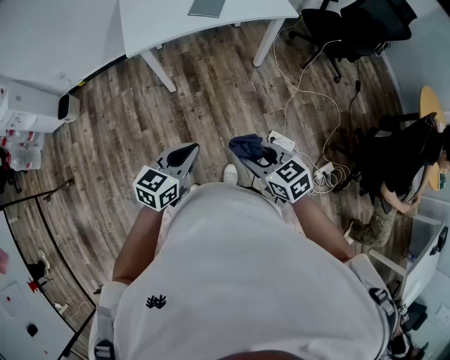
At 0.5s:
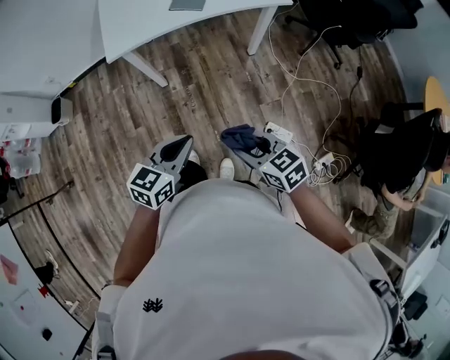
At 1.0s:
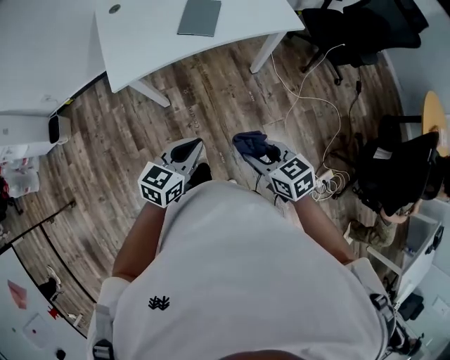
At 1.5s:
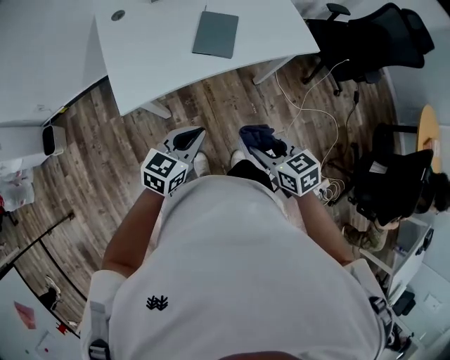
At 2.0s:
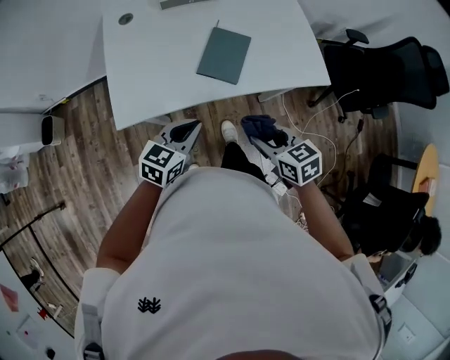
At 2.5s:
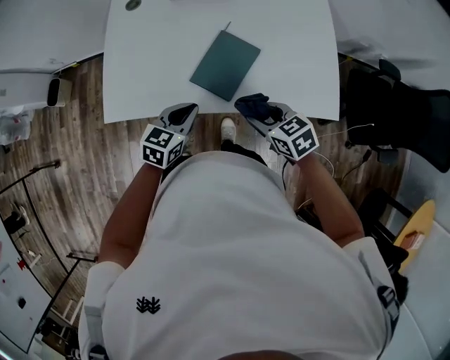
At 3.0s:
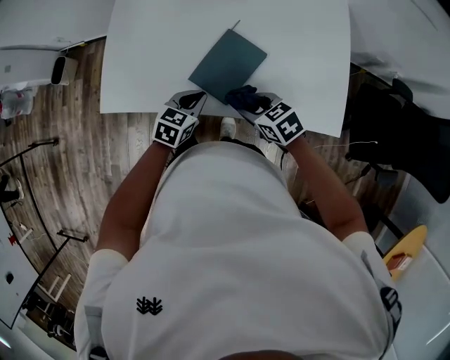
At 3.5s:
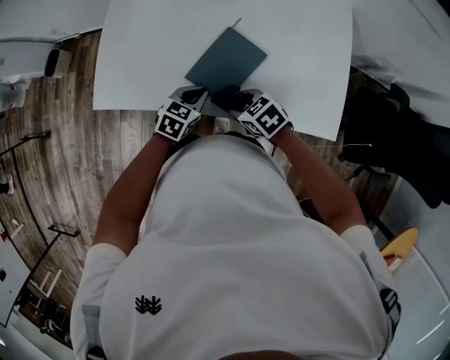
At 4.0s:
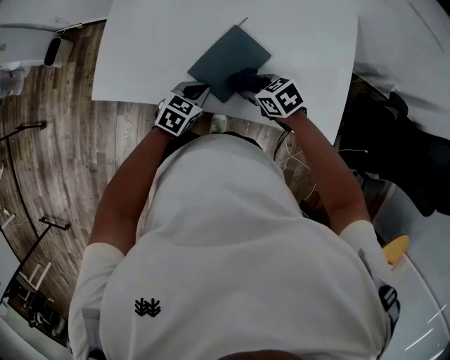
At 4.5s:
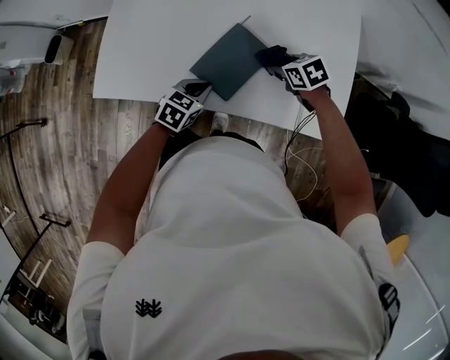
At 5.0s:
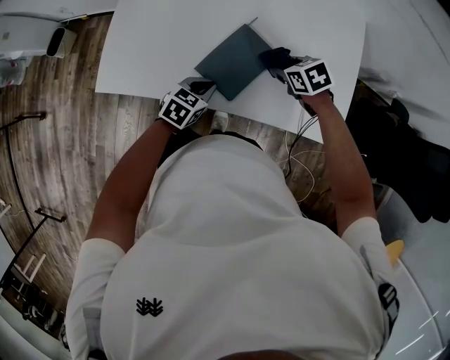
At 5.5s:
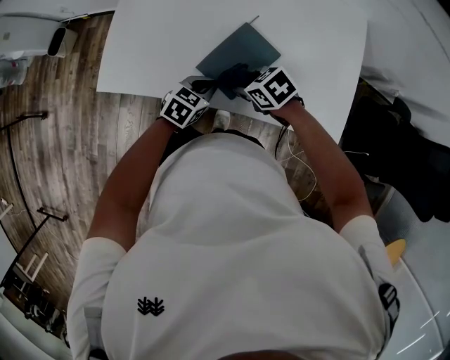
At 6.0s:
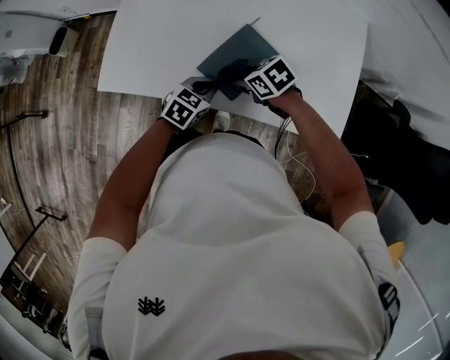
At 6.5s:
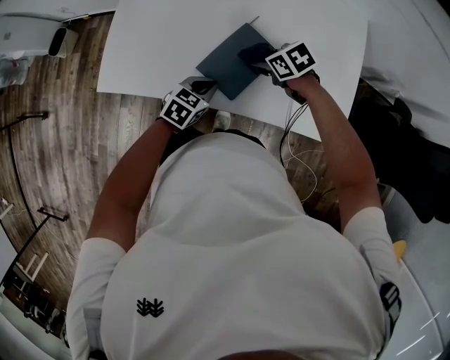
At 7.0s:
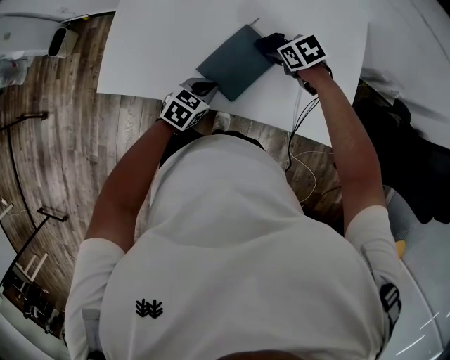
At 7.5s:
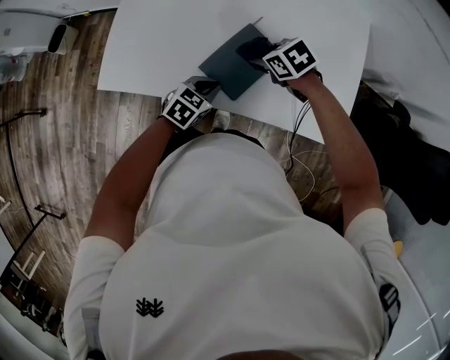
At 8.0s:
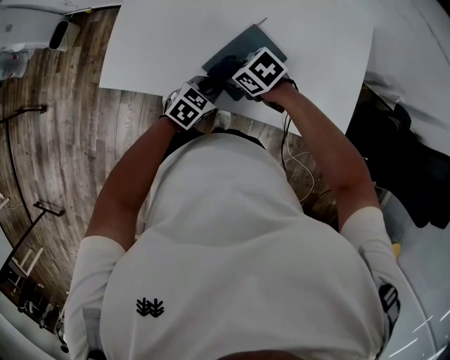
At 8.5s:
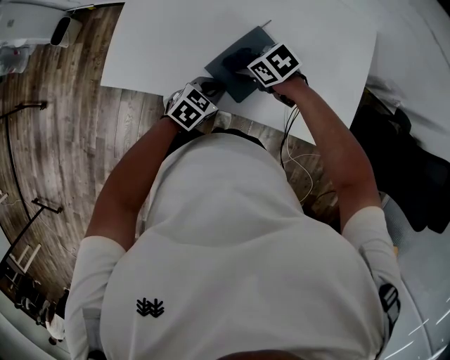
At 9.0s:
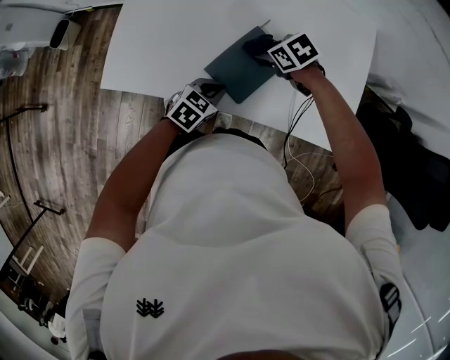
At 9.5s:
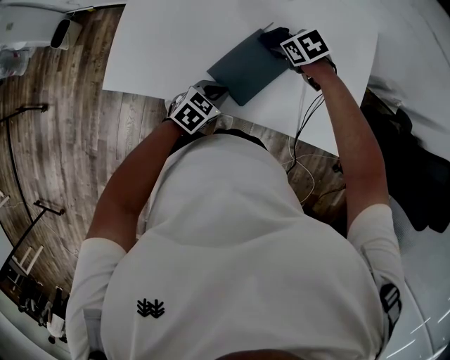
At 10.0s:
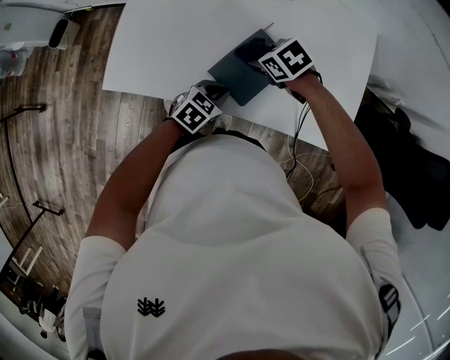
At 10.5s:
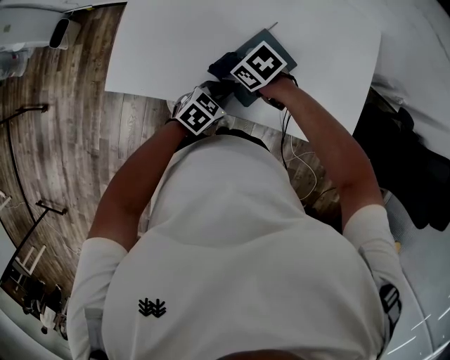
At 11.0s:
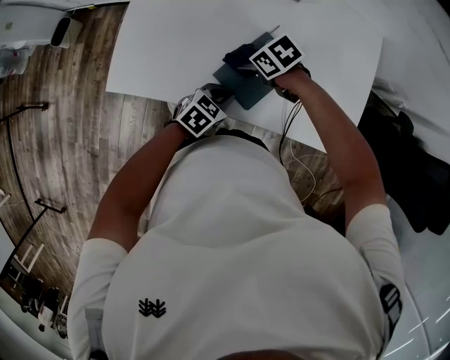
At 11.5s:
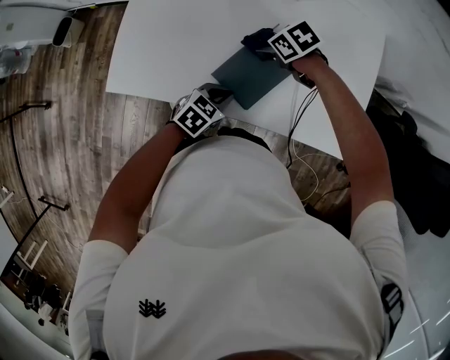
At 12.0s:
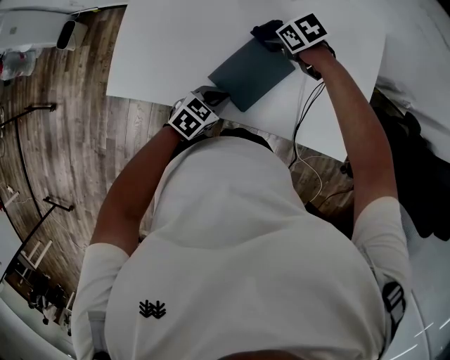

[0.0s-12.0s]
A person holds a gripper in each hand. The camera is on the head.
0.0s to 2.0s: Both grippers are carried forward, about 50 cm.
2.0s to 4.0s: The right gripper changes place by approximately 30 cm, and rotates some 40 degrees. Meanwhile the left gripper moves roughly 25 cm, and rotates approximately 30 degrees.
10.0s to 12.0s: The right gripper shifts by about 10 cm.

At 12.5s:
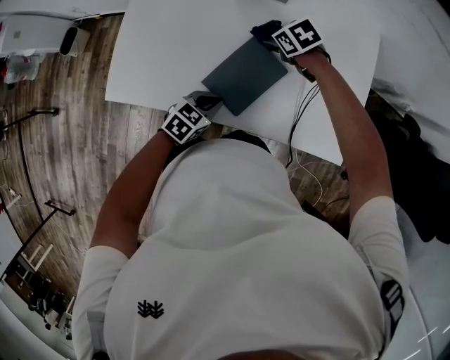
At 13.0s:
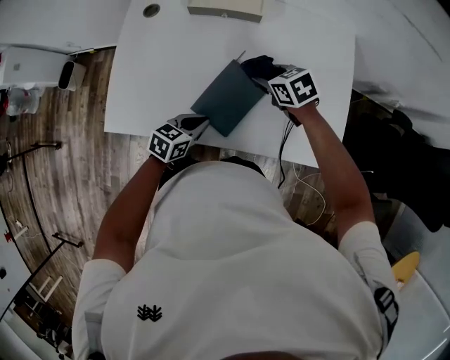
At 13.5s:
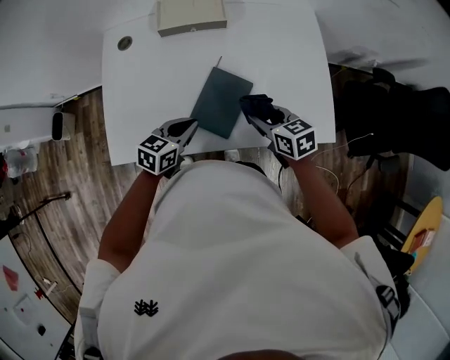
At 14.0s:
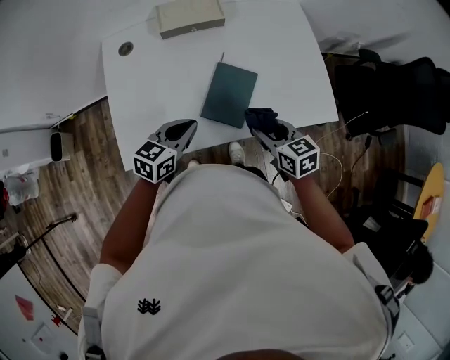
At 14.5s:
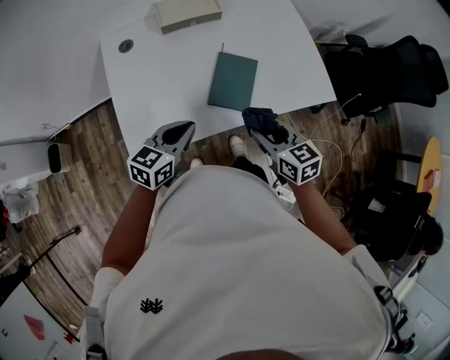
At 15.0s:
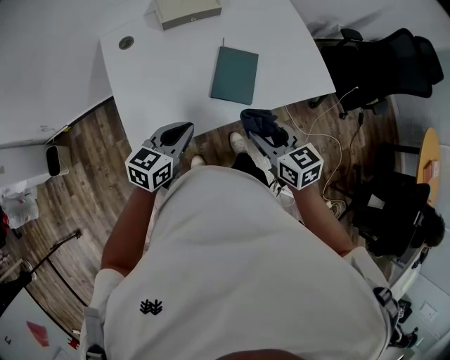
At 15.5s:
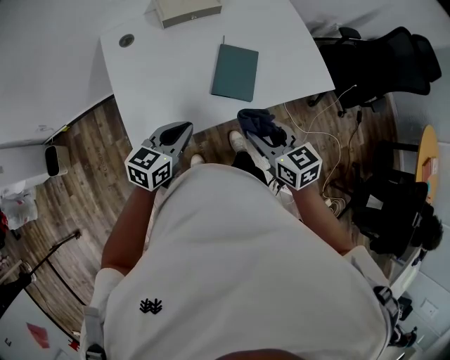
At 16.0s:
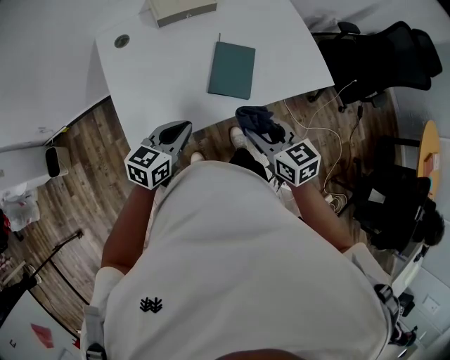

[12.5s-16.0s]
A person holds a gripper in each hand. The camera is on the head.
12.5s to 14.5s: The right gripper ends up about 35 cm from where it was, and points its fingers about 30 degrees further upward; the left gripper shifts some 20 cm upward, and changes its angle by about 30 degrees.
14.5s to 16.0s: The right gripper moves about 5 cm.

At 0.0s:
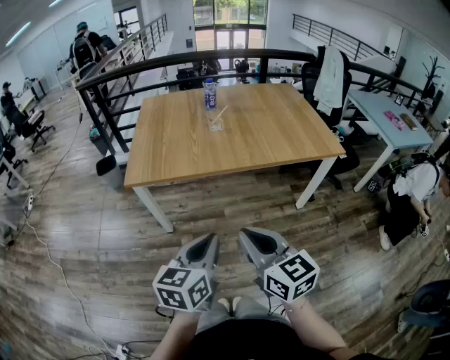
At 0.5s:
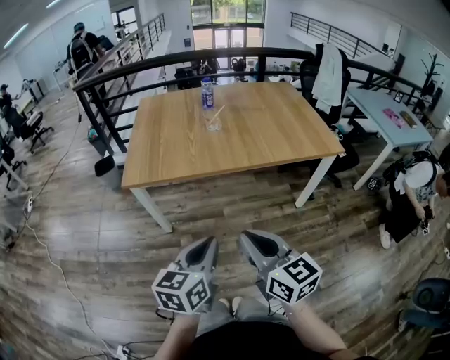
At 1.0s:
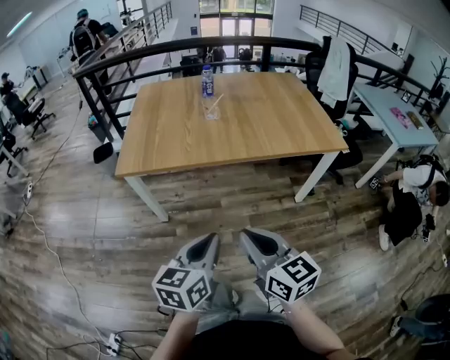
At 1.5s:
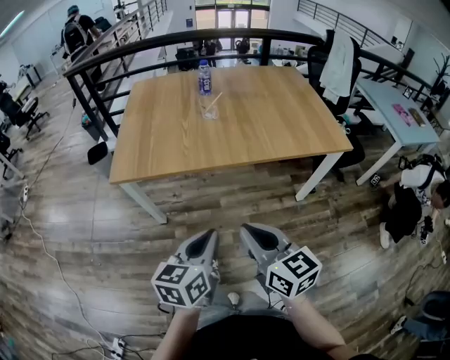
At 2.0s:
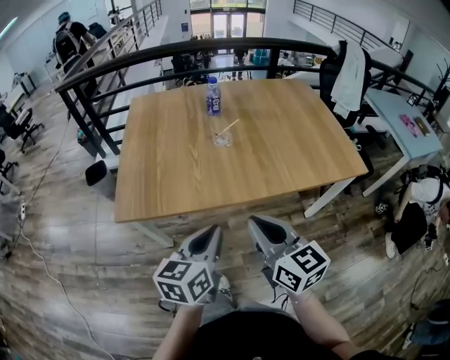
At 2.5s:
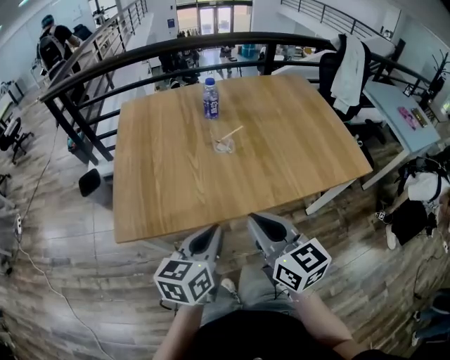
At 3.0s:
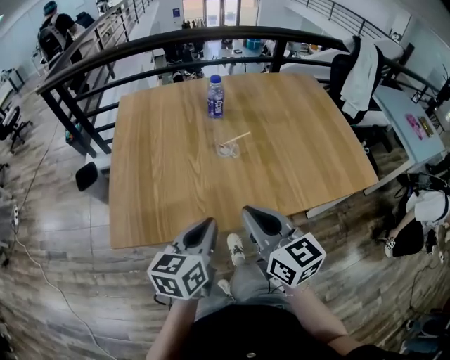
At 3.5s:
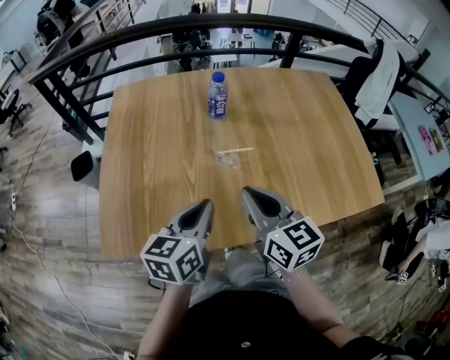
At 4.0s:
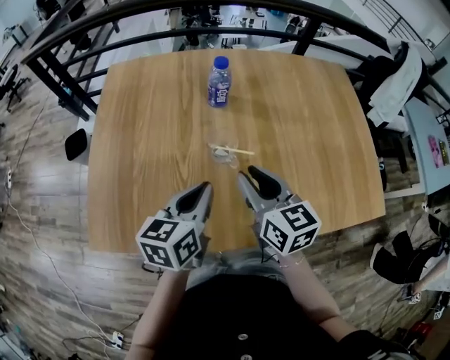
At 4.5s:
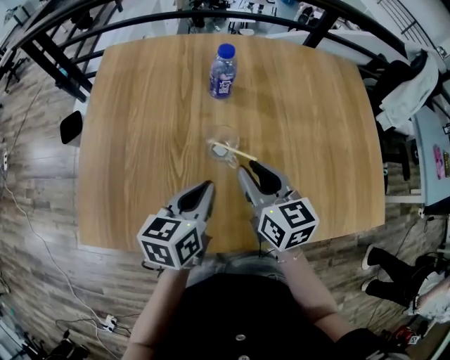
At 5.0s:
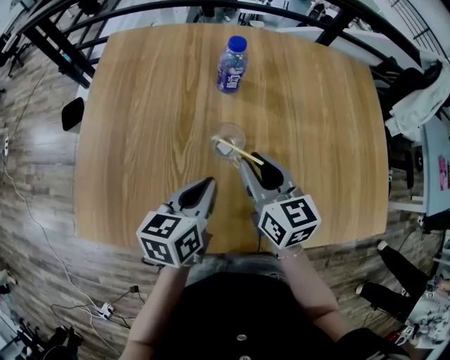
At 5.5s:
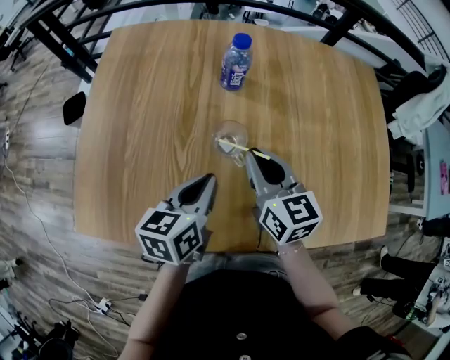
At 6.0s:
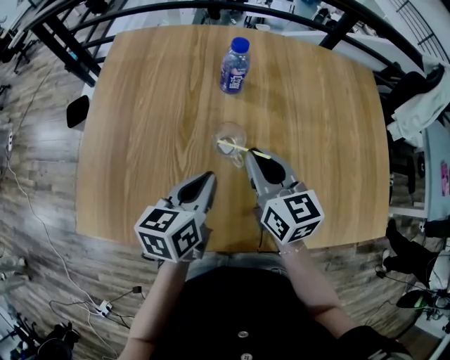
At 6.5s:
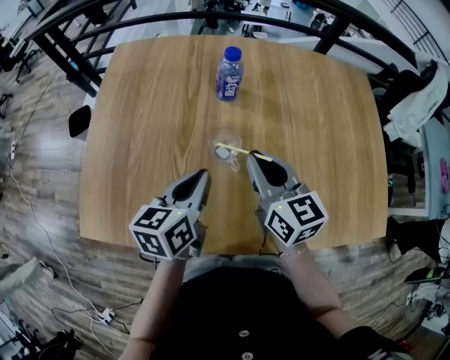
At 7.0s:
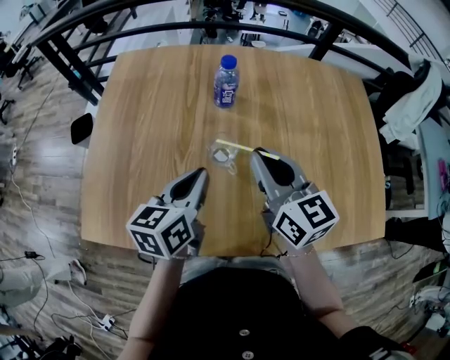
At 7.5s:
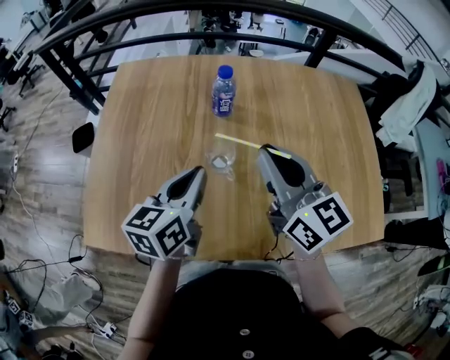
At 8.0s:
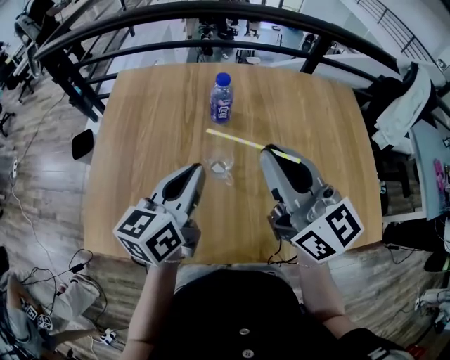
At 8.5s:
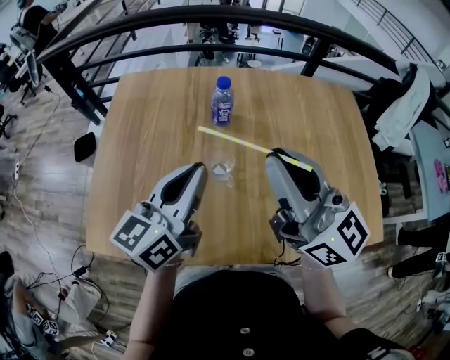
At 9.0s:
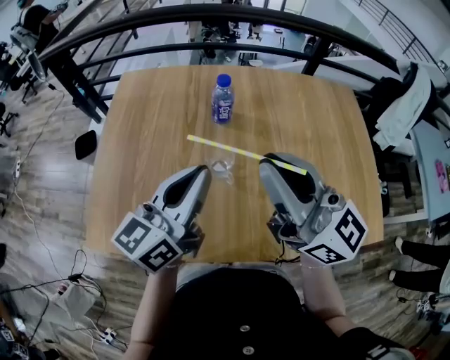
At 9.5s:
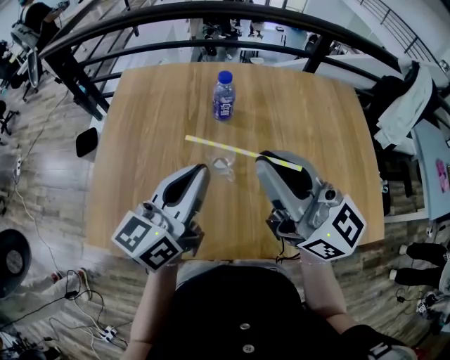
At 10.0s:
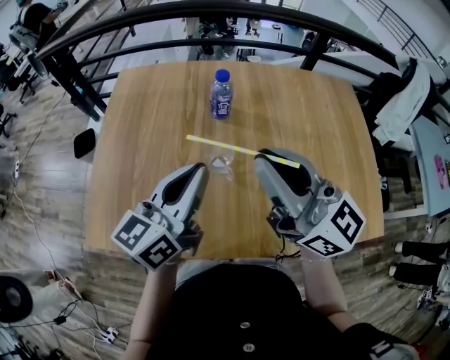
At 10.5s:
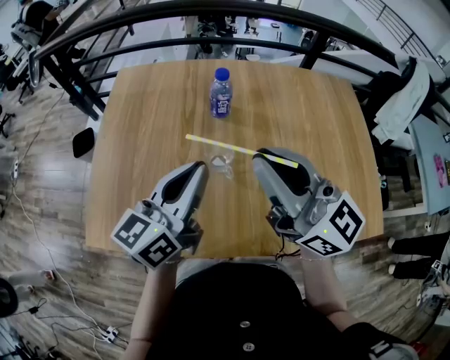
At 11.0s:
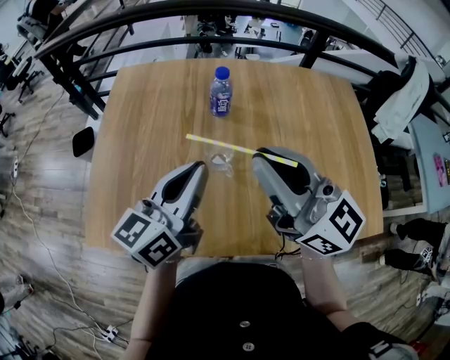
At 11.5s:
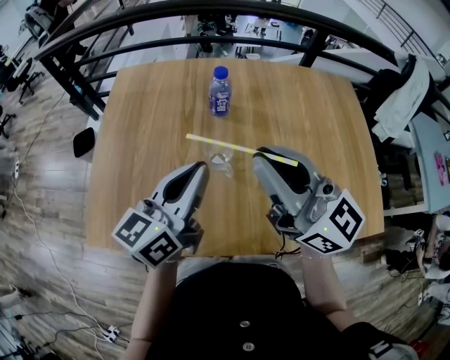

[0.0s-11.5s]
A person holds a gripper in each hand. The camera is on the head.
0.0s to 2.0s: The two grippers go about 30 cm forward.
2.0s to 4.0s: Both grippers move forward, some 40 cm. The right gripper opens its fingers.
4.0s to 6.0s: The right gripper heads forward, covering about 5 cm. The left gripper changes place by approximately 5 cm.
6.0s to 7.5s: The left gripper moves upward, about 10 cm. Meanwhile the right gripper shifts approximately 15 cm upward.
7.5s to 9.5s: The right gripper travels upward and backward by approximately 10 cm, and rotates about 20 degrees, while the left gripper is displaced upward by roughly 10 cm, and rotates roughly 20 degrees.
9.5s to 11.5s: Both grippers stay about where they are.
